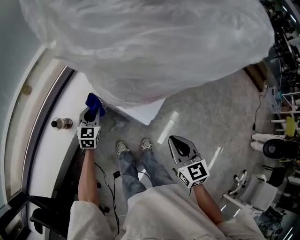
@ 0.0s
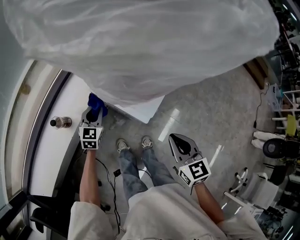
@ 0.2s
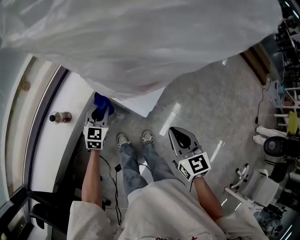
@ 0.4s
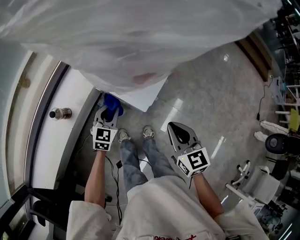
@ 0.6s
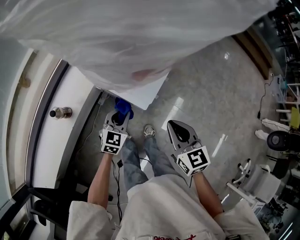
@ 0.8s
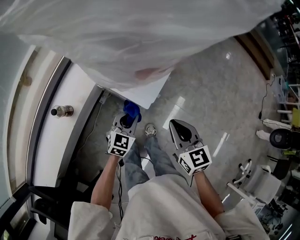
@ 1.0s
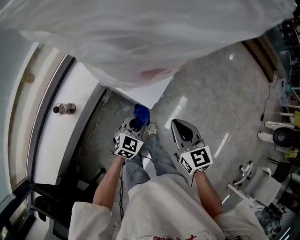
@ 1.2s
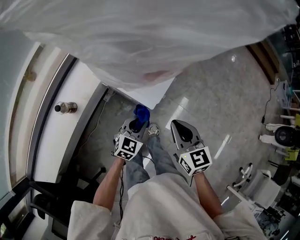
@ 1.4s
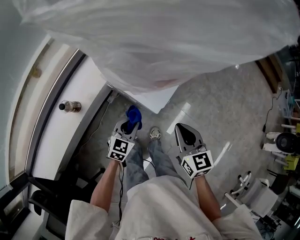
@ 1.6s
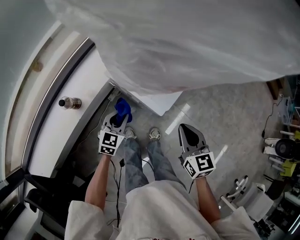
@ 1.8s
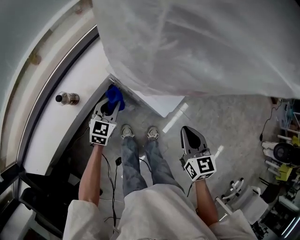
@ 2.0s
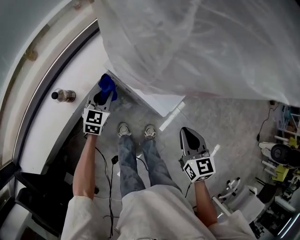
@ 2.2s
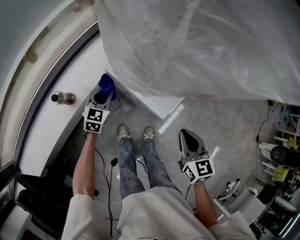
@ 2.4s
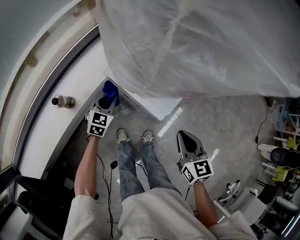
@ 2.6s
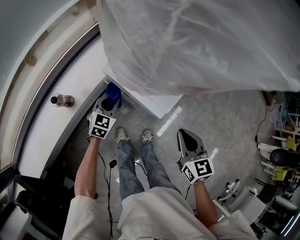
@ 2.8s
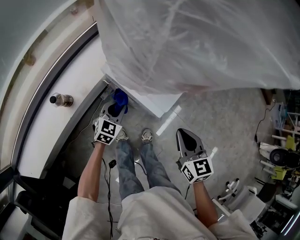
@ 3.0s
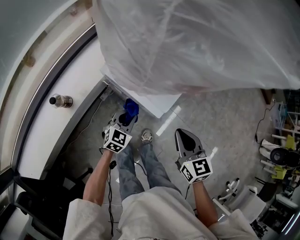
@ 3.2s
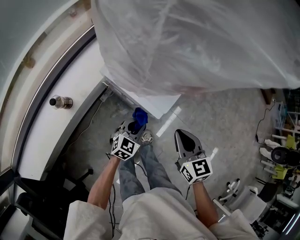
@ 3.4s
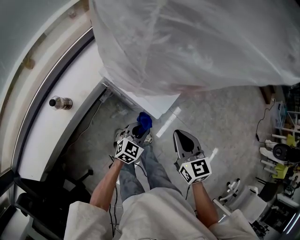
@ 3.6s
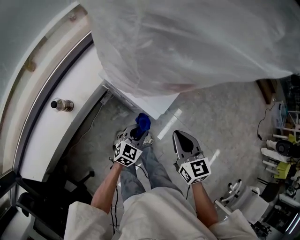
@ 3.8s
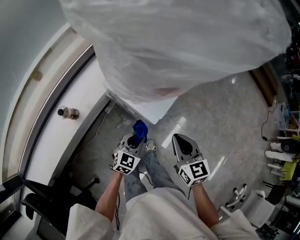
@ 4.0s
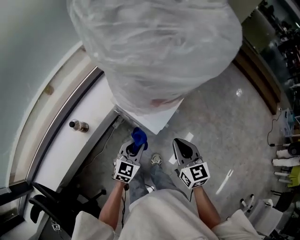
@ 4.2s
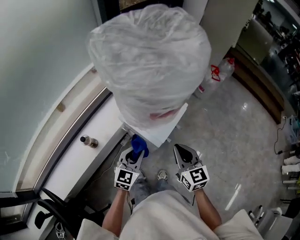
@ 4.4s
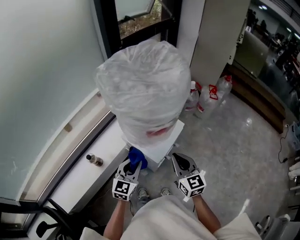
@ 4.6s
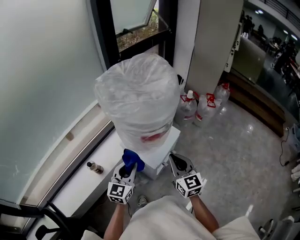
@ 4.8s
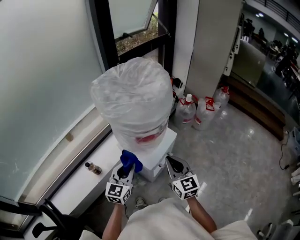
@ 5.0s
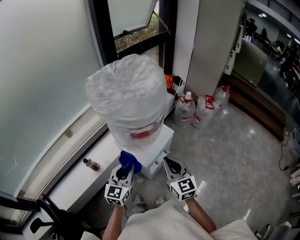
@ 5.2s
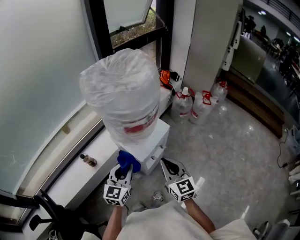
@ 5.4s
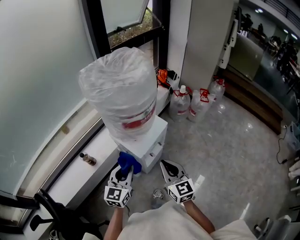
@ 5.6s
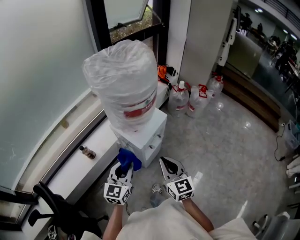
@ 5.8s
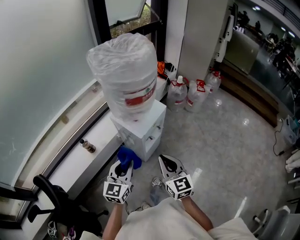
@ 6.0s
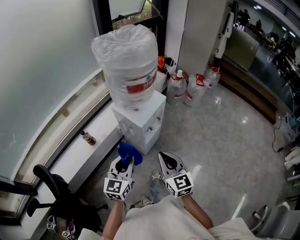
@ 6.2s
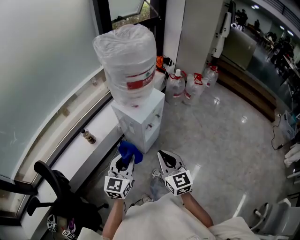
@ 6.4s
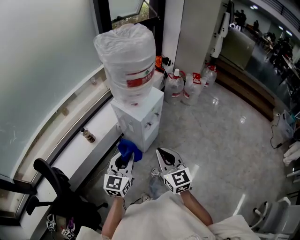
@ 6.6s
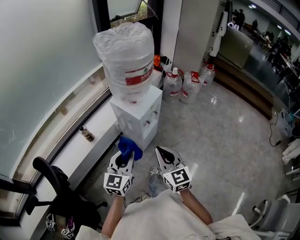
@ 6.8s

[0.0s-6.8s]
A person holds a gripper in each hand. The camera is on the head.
0.0s to 1.4s: The left gripper travels to the right and backward by roughly 25 cm, and rotates roughly 20 degrees.
1.4s to 2.8s: The left gripper goes approximately 20 cm to the left and forward.
2.8s to 4.0s: The left gripper is displaced to the right and backward by some 20 cm.
4.0s to 5.4s: The right gripper is displaced upward by roughly 15 cm, and turns by approximately 20 degrees. Meanwhile the left gripper heads upward, covering some 30 cm, and swivels some 30 degrees.
5.4s to 6.8s: The grippers both shift backward by about 20 cm.

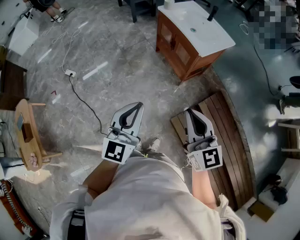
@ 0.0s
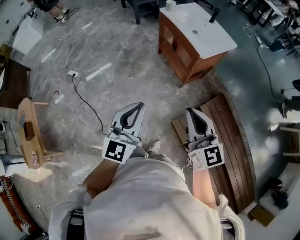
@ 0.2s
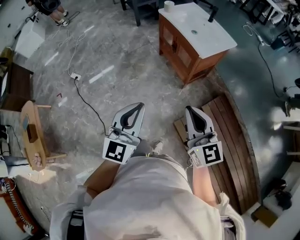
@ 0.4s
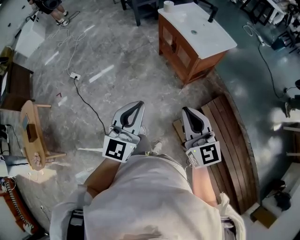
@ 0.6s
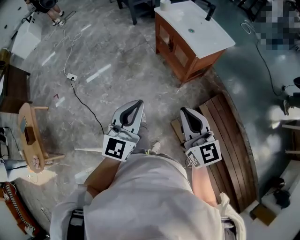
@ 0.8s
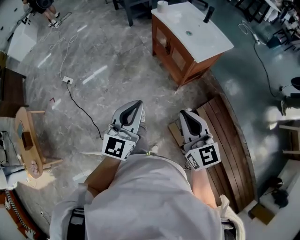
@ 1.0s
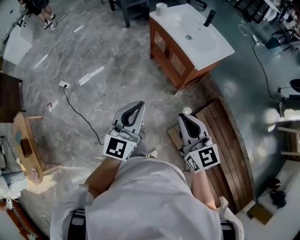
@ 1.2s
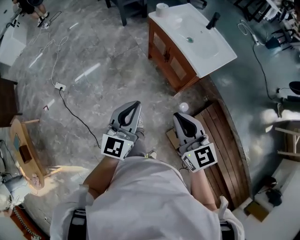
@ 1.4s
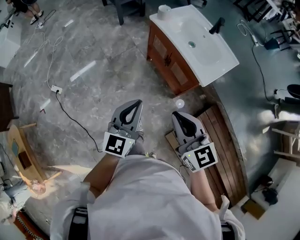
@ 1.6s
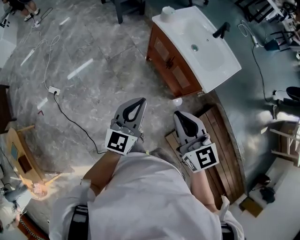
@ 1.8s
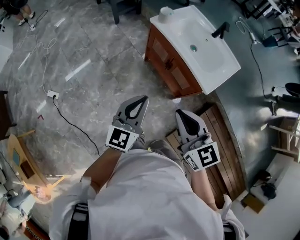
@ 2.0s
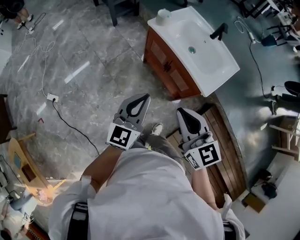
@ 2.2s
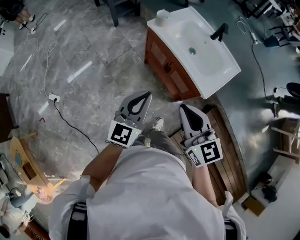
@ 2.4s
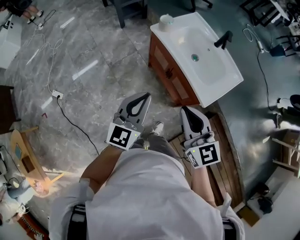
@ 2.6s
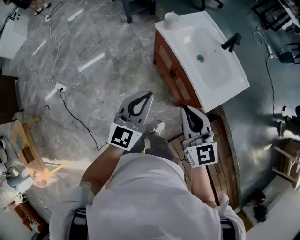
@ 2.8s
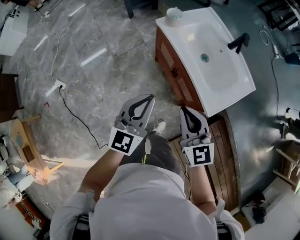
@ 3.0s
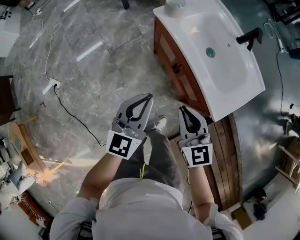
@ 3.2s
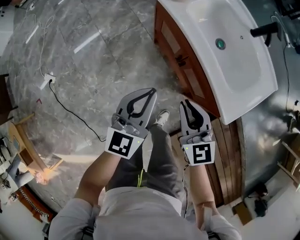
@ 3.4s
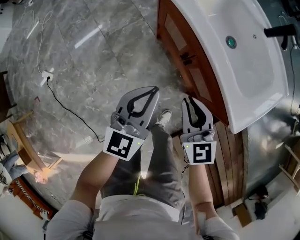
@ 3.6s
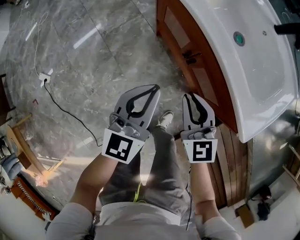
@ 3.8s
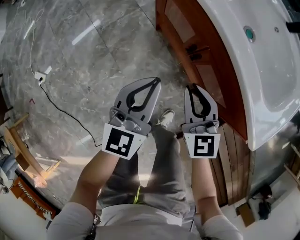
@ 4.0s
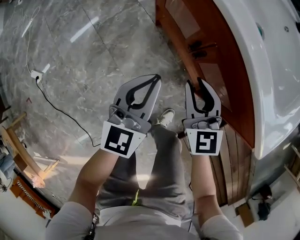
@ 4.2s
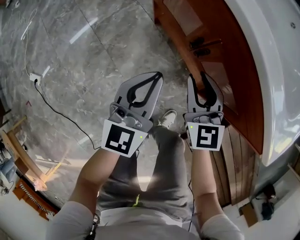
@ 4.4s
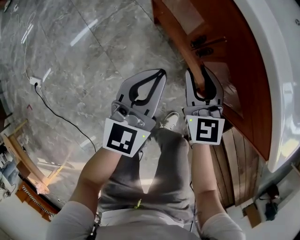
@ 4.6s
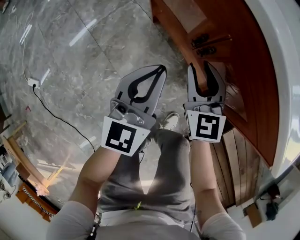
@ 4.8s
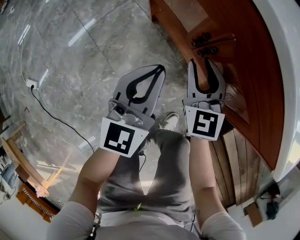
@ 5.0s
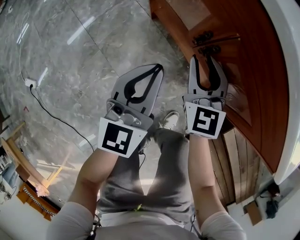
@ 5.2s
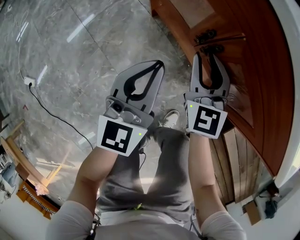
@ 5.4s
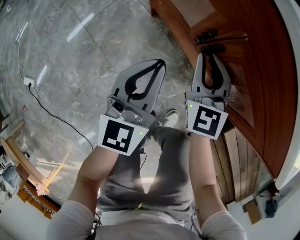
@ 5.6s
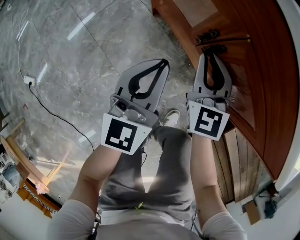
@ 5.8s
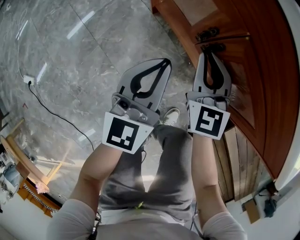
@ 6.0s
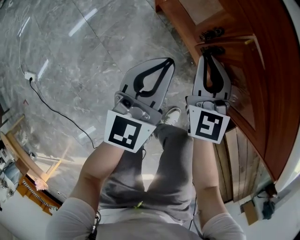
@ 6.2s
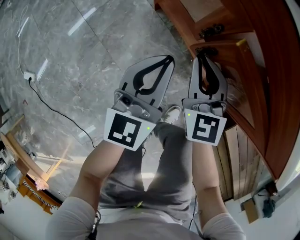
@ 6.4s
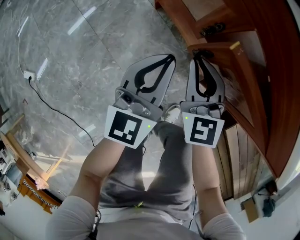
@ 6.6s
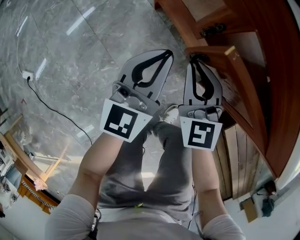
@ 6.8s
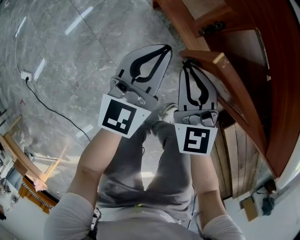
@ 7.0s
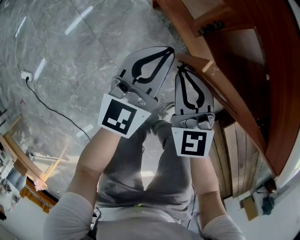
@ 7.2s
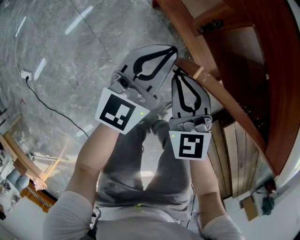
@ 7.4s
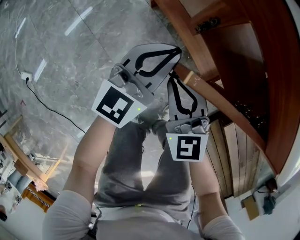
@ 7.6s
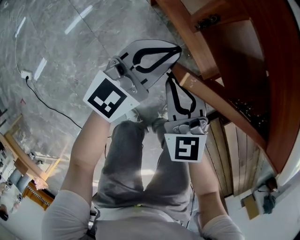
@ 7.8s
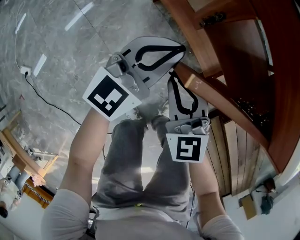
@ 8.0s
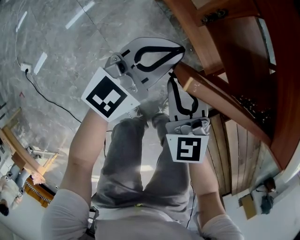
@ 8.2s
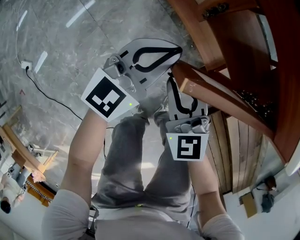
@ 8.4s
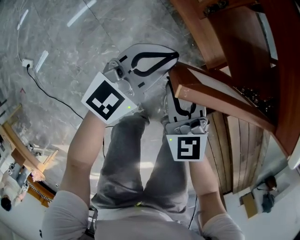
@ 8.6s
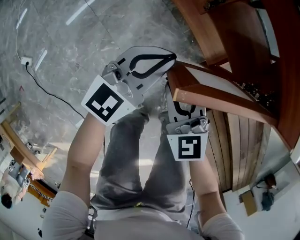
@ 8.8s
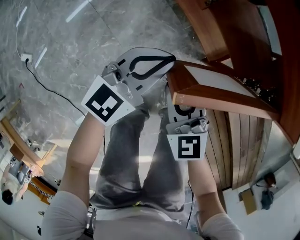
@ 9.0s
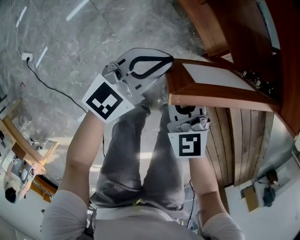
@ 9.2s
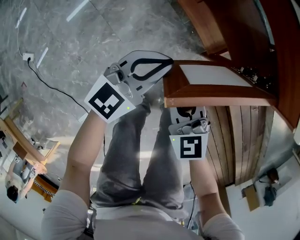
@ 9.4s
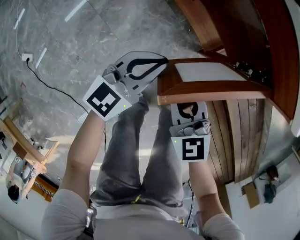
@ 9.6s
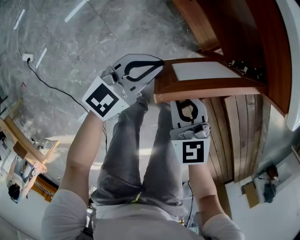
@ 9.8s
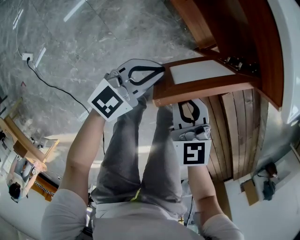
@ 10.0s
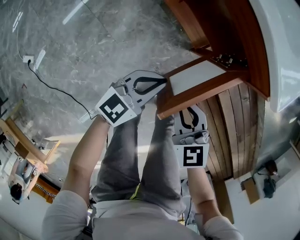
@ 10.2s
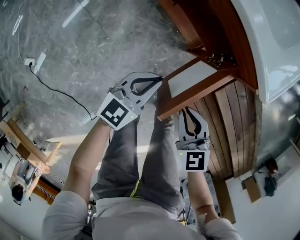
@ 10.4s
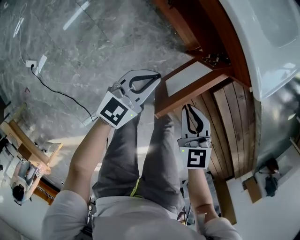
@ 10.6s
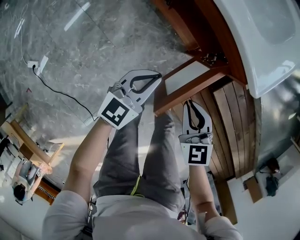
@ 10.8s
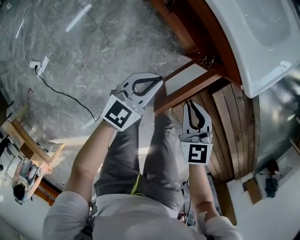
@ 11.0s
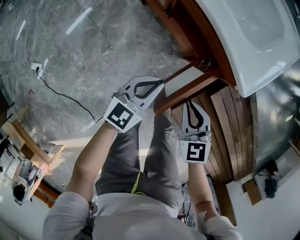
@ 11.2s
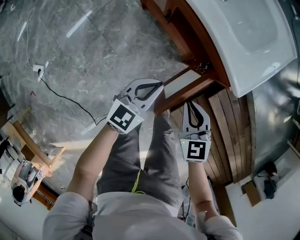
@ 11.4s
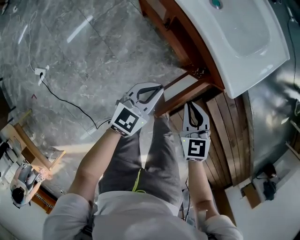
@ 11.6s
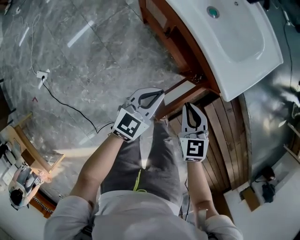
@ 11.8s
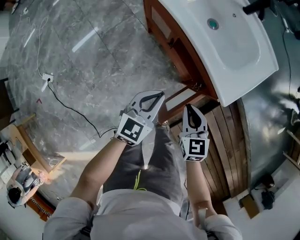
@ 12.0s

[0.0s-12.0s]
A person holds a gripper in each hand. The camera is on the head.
0.0s to 1.6s: Both grippers travel together forward, approximately 35 cm.
1.6s to 3.0s: Both grippers move forward, roughly 25 cm.
3.0s to 4.4s: Both grippers travel together downward, roughly 40 cm.
4.4s to 6.0s: The right gripper is displaced downward and forward by roughly 10 cm. Meanwhile the left gripper shifts approximately 10 cm downward.
6.0s to 7.6s: The right gripper is displaced backward by about 10 cm.
7.6s to 9.0s: The two grippers go approximately 15 cm backward.
9.0s to 10.4s: The right gripper is displaced to the right, upward and backward by approximately 20 cm; the left gripper moves to the right, backward and upward, some 10 cm.
10.4s to 12.0s: The right gripper heads upward and forward, covering roughly 15 cm, while the left gripper travels upward by about 20 cm.

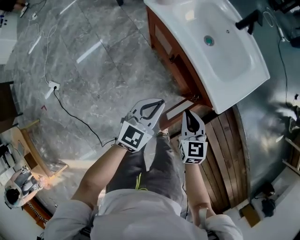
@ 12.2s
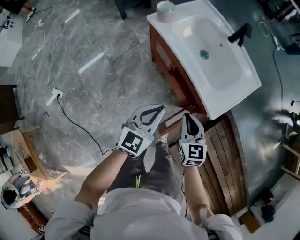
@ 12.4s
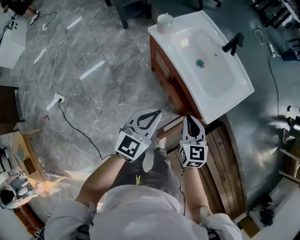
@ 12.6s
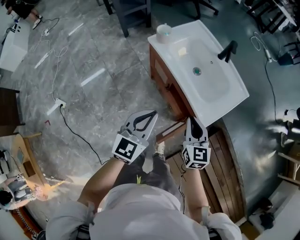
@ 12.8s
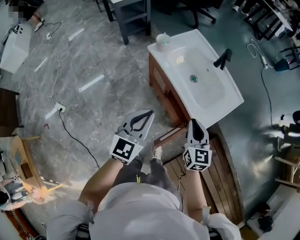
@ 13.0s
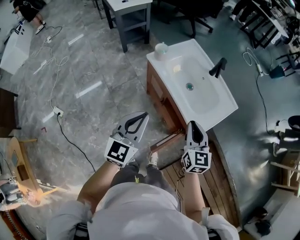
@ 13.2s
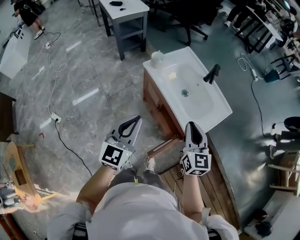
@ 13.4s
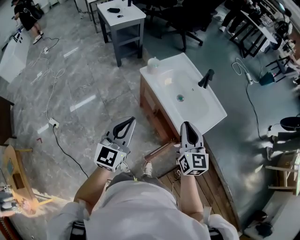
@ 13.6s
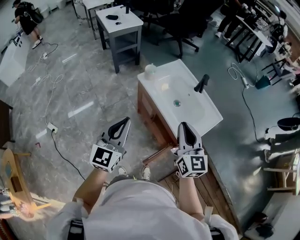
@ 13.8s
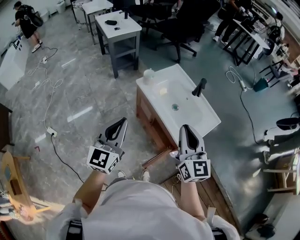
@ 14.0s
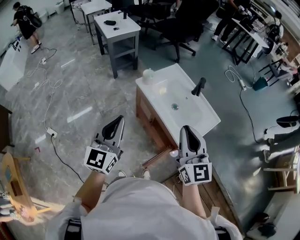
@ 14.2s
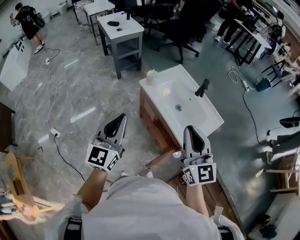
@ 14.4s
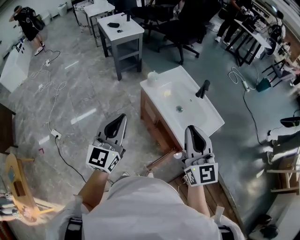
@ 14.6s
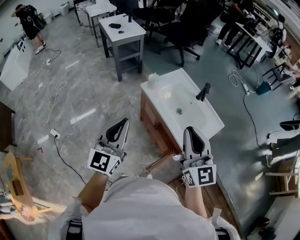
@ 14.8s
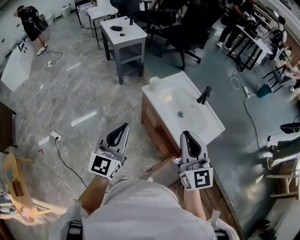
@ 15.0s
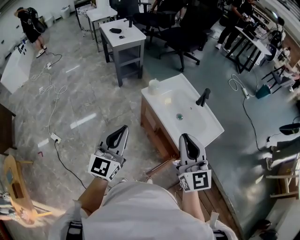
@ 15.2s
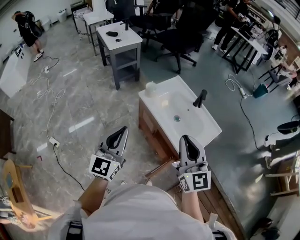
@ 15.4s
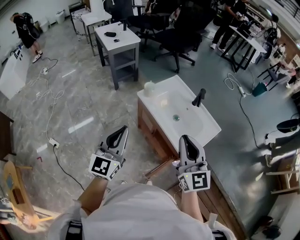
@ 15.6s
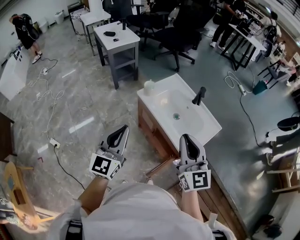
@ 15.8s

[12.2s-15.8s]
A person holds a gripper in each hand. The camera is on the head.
12.2s to 14.0s: Both grippers move upward, some 40 cm. The right gripper tips its fingers upward by roughly 30 degrees. Meanwhile the left gripper turns by roughly 30 degrees.
14.0s to 15.8s: The grippers make only small movements.

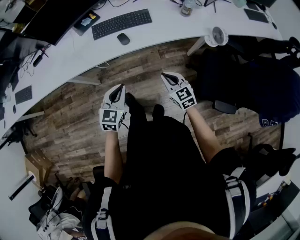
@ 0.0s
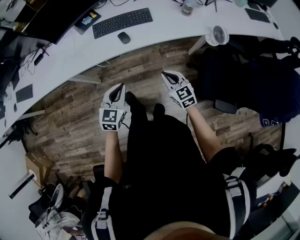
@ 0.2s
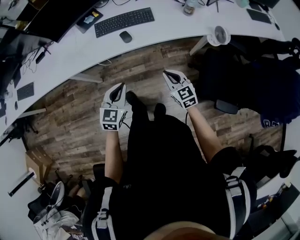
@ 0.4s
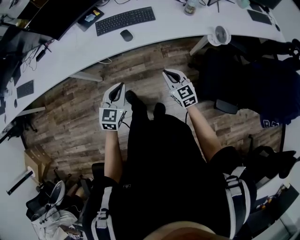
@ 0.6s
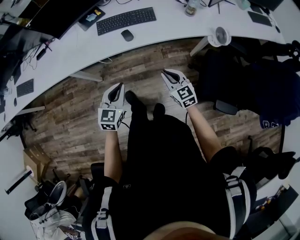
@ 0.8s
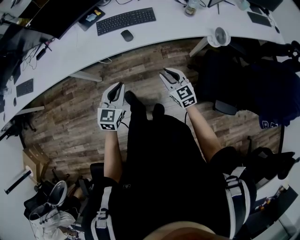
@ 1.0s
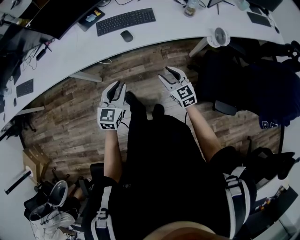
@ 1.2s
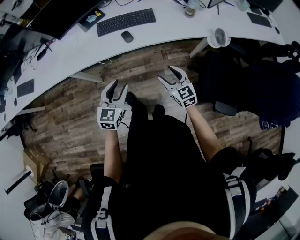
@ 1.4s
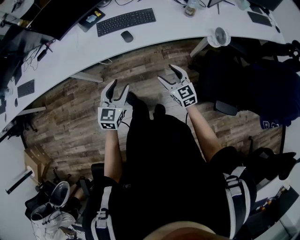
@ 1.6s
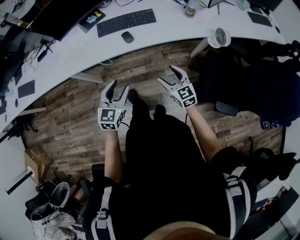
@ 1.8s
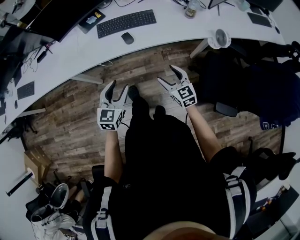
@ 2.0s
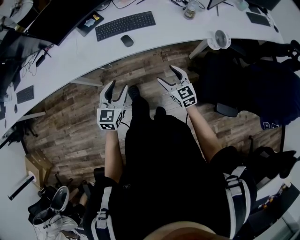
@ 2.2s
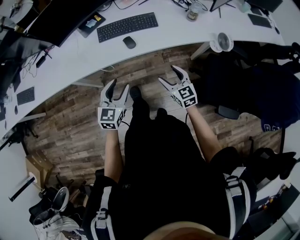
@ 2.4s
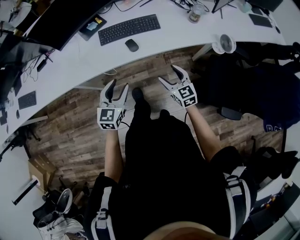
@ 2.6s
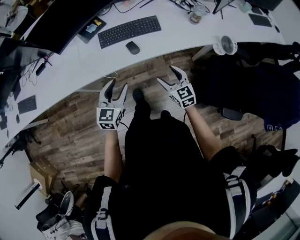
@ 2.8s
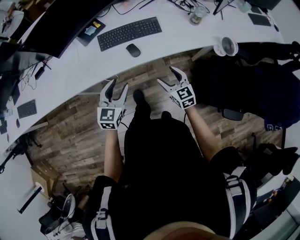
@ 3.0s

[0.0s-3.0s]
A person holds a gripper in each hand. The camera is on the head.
0.0s to 1.6s: The right gripper opens its fingers, while the left gripper opens.
1.6s to 3.0s: Both grippers travel together forward, some 10 cm.
